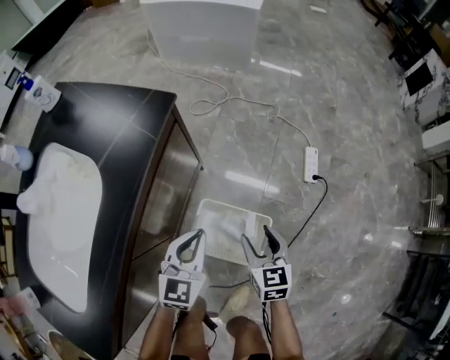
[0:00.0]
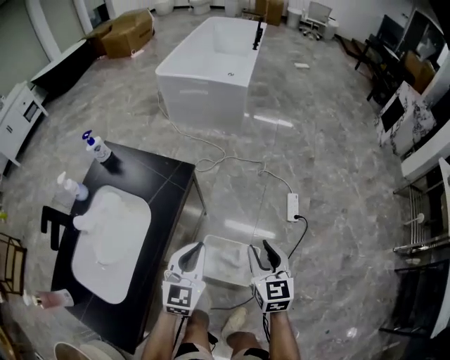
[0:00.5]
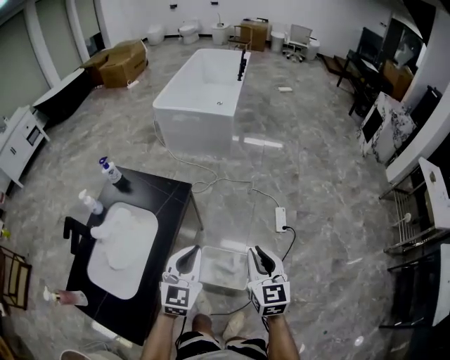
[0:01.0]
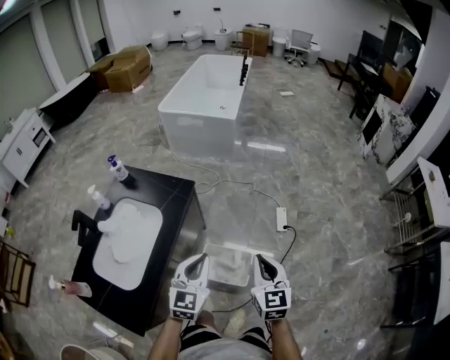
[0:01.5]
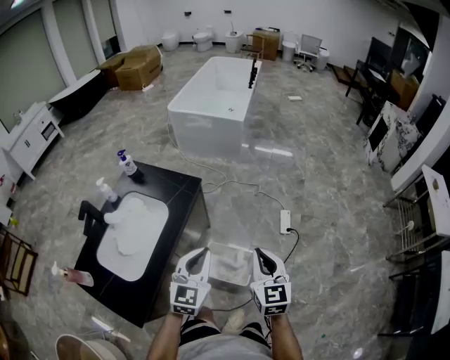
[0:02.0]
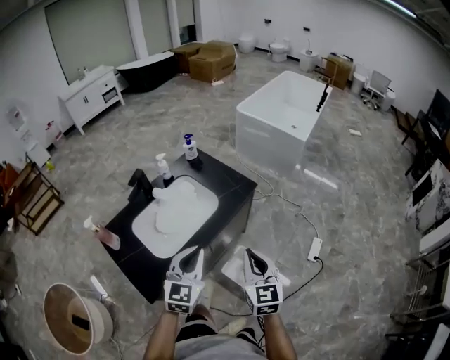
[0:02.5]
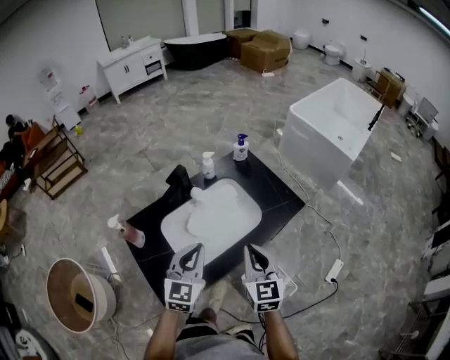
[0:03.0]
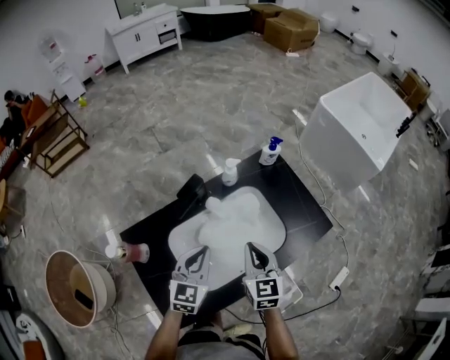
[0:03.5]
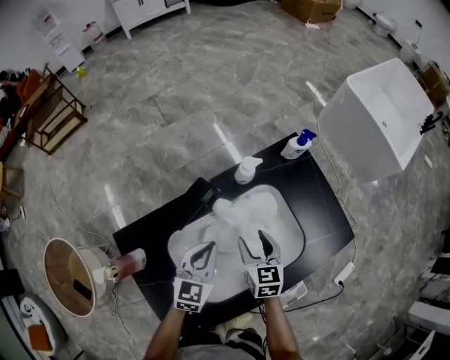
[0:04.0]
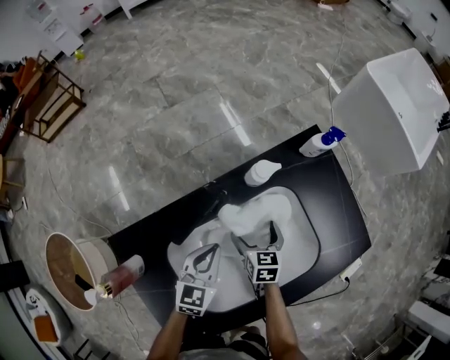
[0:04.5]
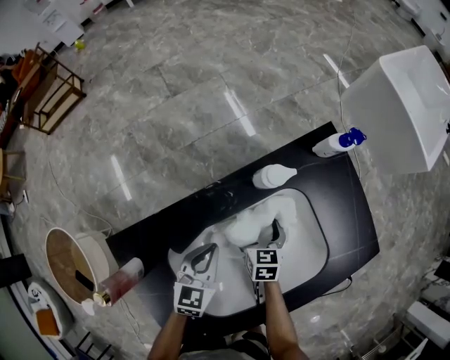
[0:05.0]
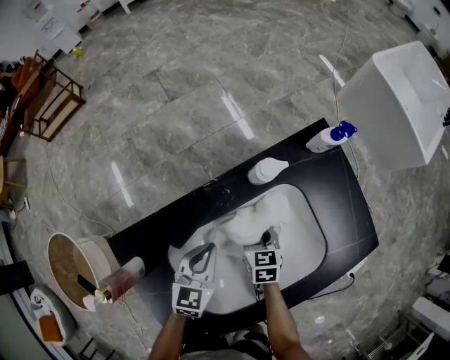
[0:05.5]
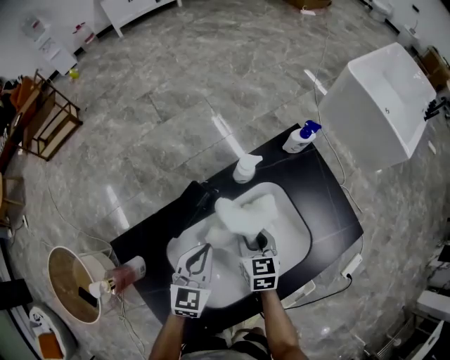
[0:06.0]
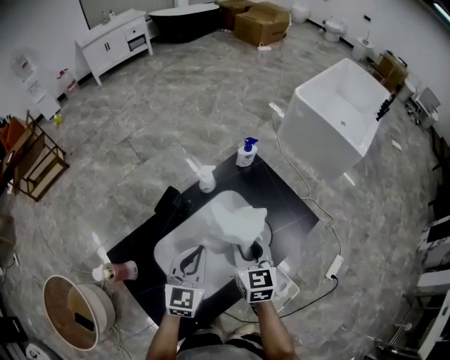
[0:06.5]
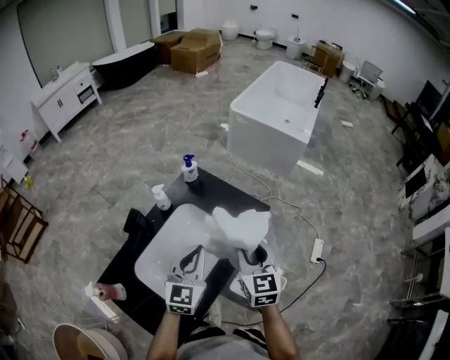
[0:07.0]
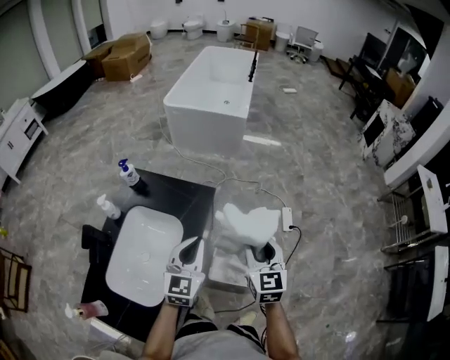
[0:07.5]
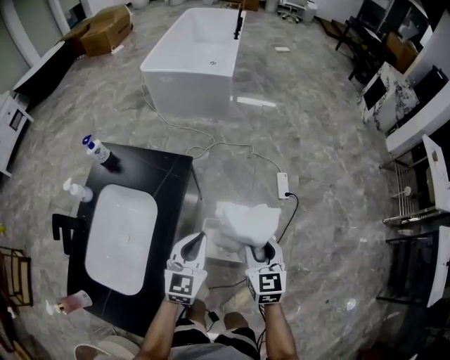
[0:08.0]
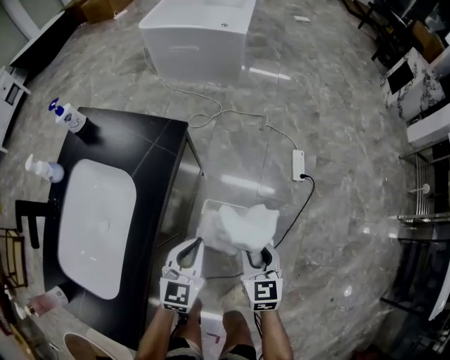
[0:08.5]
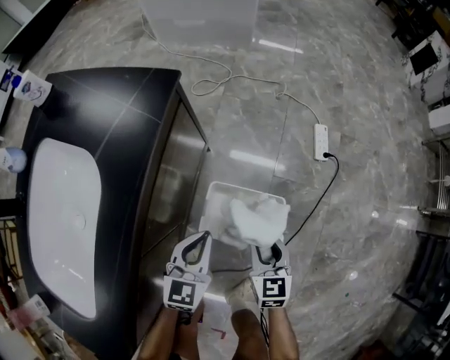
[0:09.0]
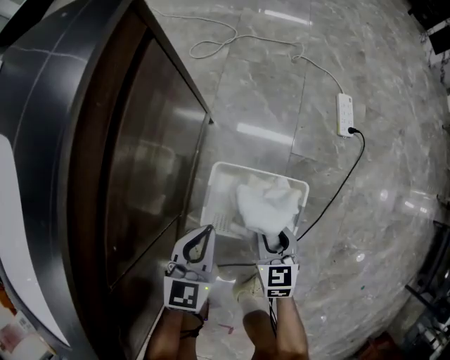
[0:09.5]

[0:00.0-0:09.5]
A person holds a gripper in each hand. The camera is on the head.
0.0 to 2.0 s: Both grippers move upward, some 50 cm. The right gripper changes its angle by some 20 degrees, and closes up.
2.0 to 4.0 s: Both grippers are carried approximately 60 cm. The left gripper rotates some 40 degrees, while the right gripper changes its angle by roughly 50 degrees, and opens up.
4.0 to 5.5 s: The right gripper shifts roughly 15 cm downward, and opens, then closes once more, while the left gripper moves downward, some 10 cm.
5.5 to 7.5 s: The left gripper moves roughly 50 cm, and changes its angle by some 50 degrees; the right gripper moves approximately 60 cm, and changes its angle by roughly 60 degrees.
7.5 to 9.5 s: The grippers both shift downward by roughly 70 cm. The right gripper rotates roughly 30 degrees. The left gripper changes its angle by some 30 degrees.

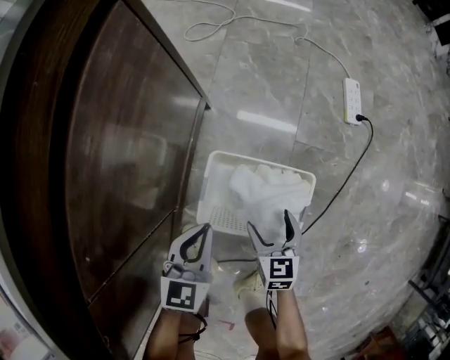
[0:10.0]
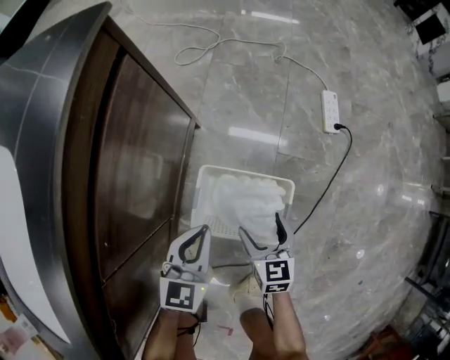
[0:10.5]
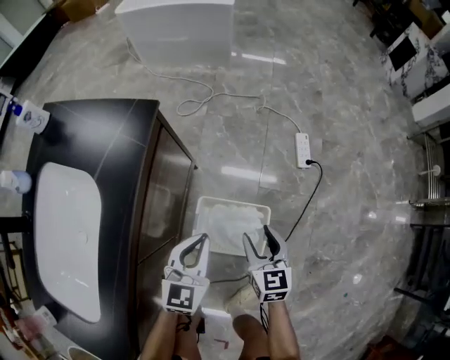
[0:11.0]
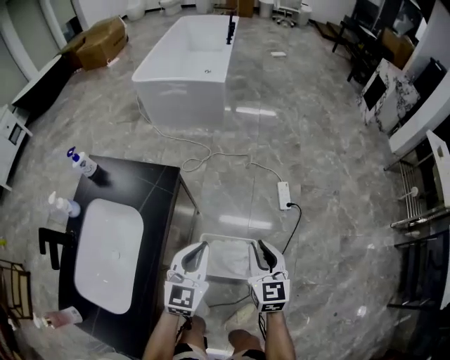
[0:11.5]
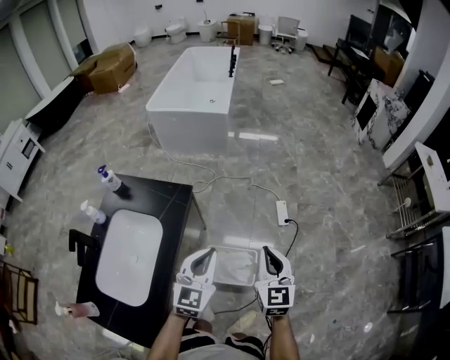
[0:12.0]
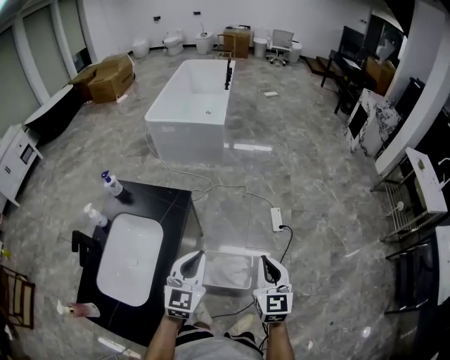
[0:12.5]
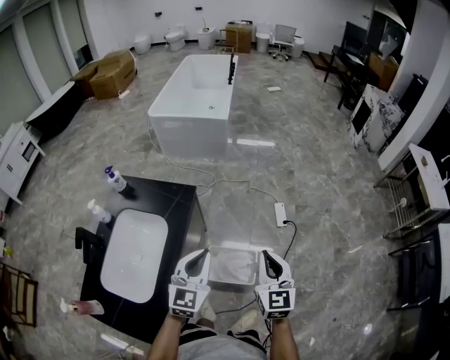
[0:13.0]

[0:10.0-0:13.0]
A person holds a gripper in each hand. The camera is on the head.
10.0 to 11.5 s: Both grippers travel together upward, some 50 cm. The right gripper turns by approximately 20 degrees, and closes up. The left gripper turns by roughly 30 degrees.
11.5 to 13.0 s: The two grippers go approximately 20 cm upward and backward.

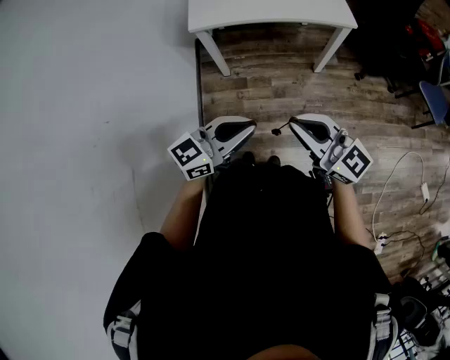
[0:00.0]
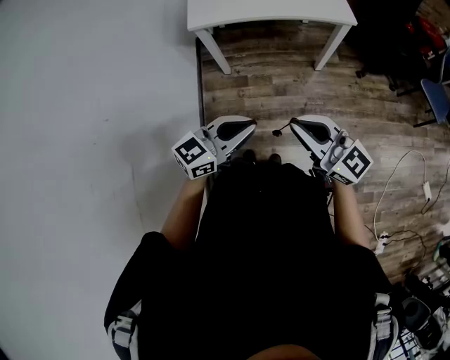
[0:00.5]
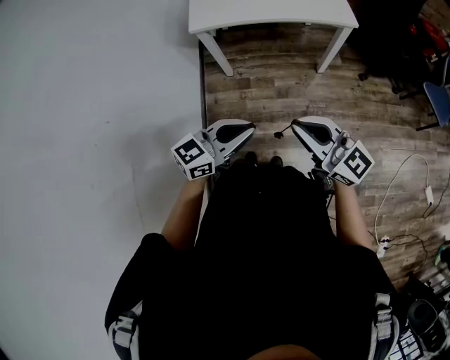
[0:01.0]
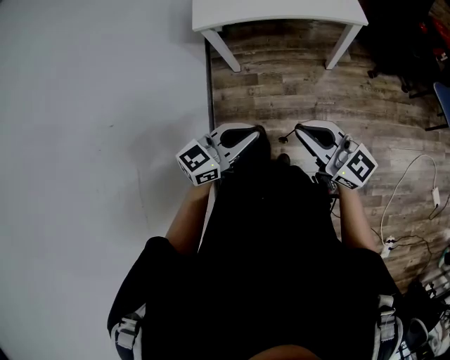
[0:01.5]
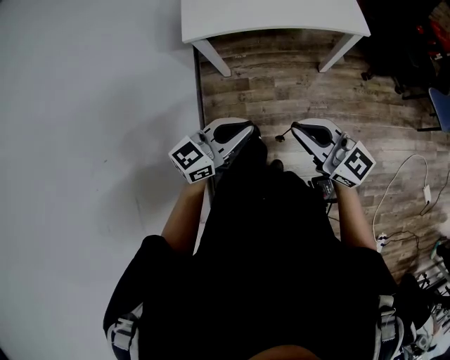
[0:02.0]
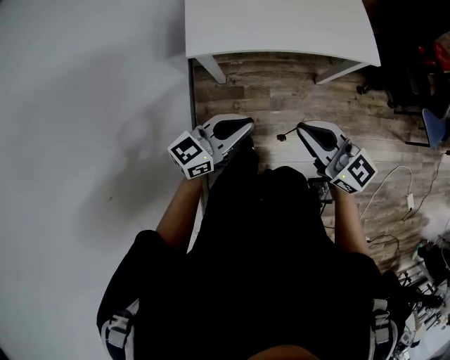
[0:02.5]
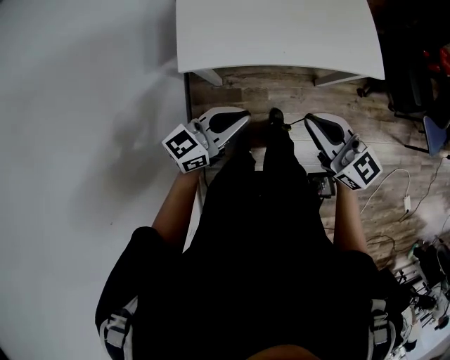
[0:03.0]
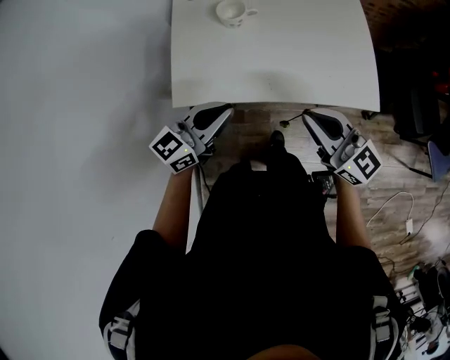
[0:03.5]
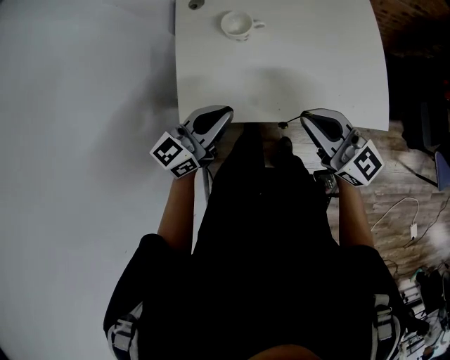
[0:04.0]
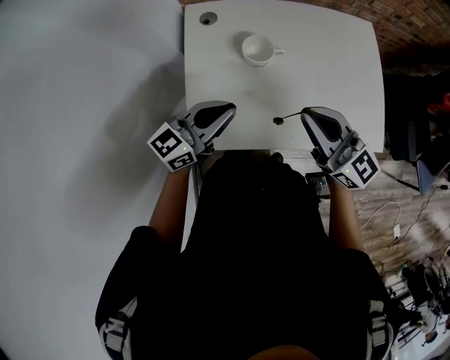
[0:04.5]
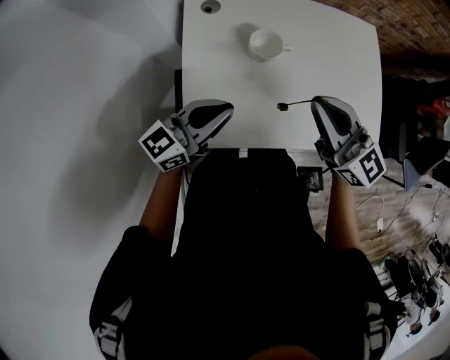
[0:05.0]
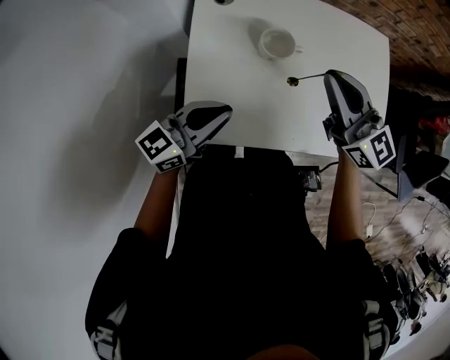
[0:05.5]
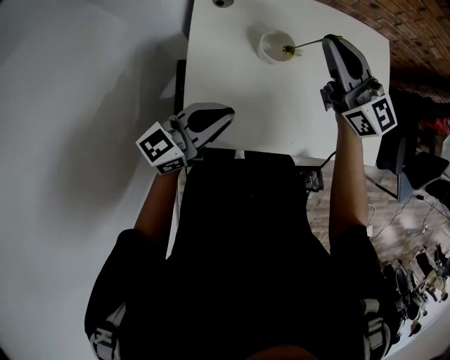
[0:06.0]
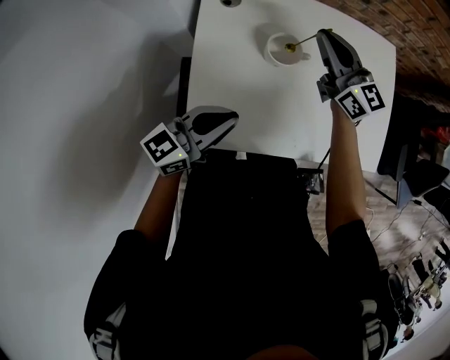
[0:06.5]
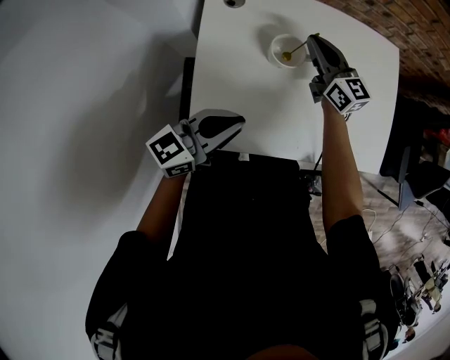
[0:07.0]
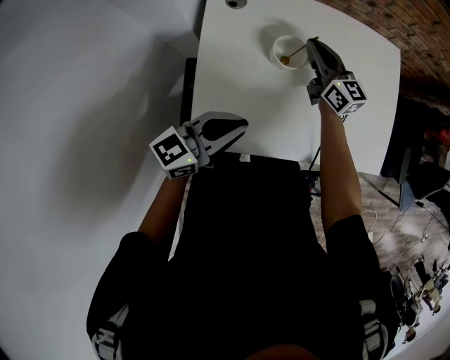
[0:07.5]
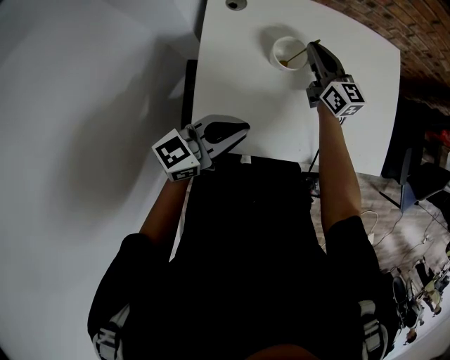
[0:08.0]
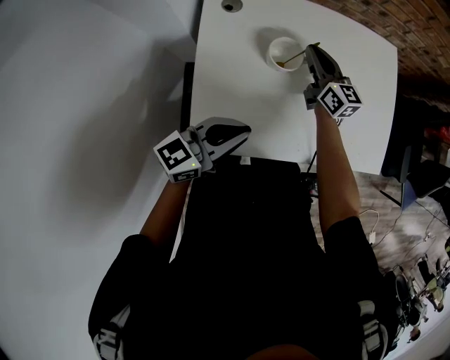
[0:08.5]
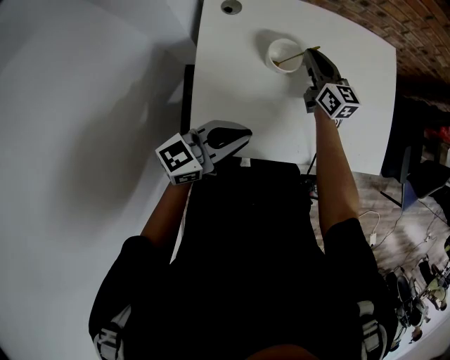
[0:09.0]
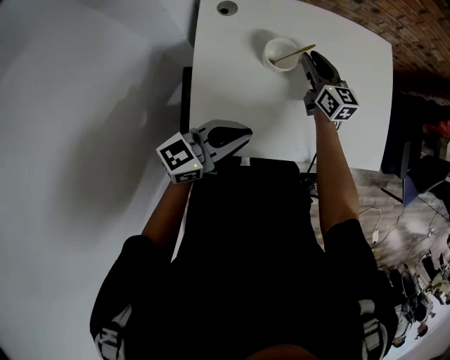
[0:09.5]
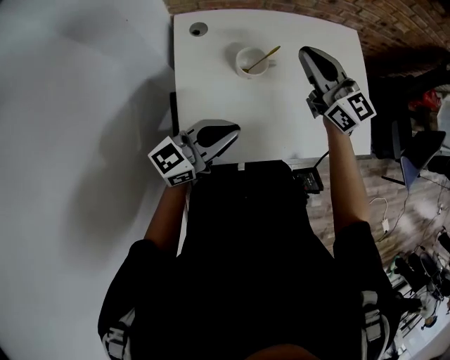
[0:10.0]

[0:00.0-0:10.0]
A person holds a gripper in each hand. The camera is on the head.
0.0 to 2.0 s: The two grippers go some 10 cm forward.
2.0 to 4.0 s: The two grippers travel together, forward, about 40 cm.
4.0 to 6.0 s: The left gripper goes approximately 15 cm to the left and forward, while the right gripper heads forward and to the left, covering about 30 cm.
6.0 to 8.0 s: The right gripper shifts some 20 cm downward, and swivels roughly 20 degrees.
8.0 to 10.0 s: The right gripper goes roughly 15 cm upward, and opens and closes again.

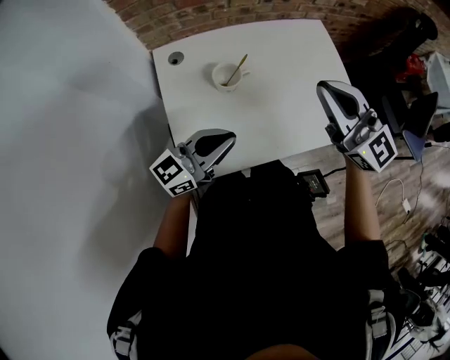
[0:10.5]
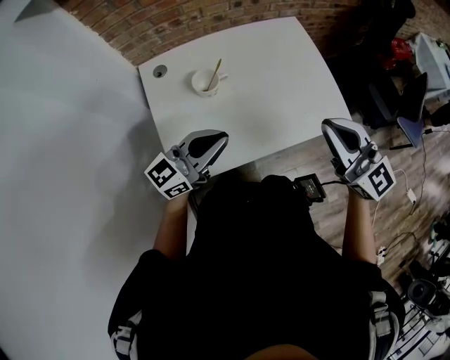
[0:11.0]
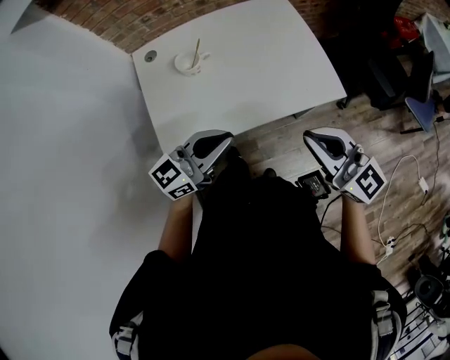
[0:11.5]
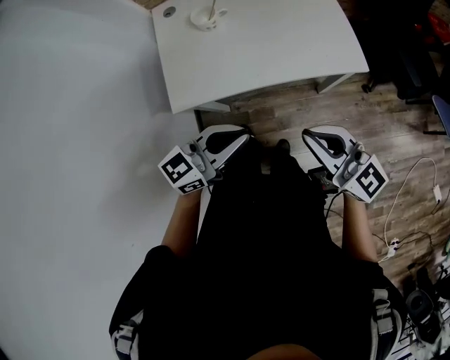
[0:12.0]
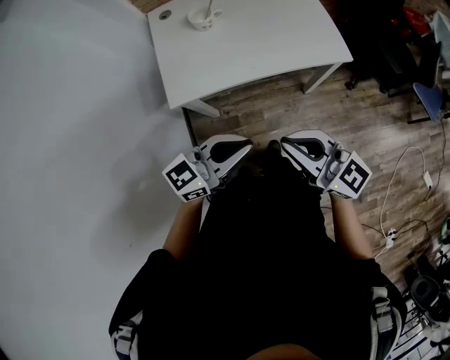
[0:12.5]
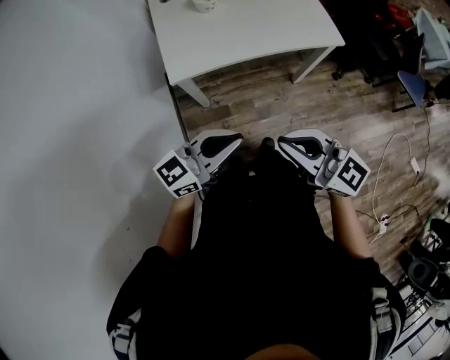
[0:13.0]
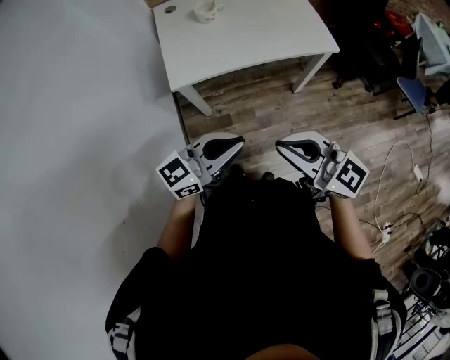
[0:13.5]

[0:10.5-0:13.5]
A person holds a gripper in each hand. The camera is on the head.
10.5 to 12.0 s: The grippers both shift backward and to the right by approximately 30 cm.
12.0 to 13.5 s: The right gripper ends up approximately 25 cm from where it was, while the left gripper moves some 20 cm.

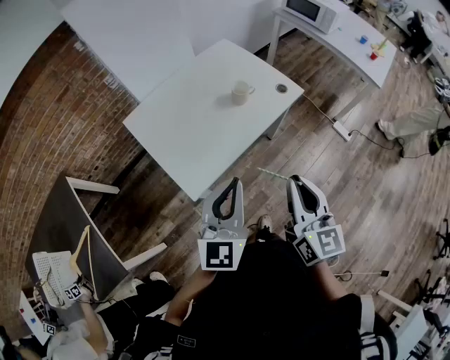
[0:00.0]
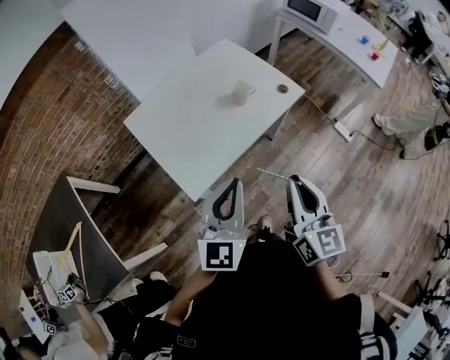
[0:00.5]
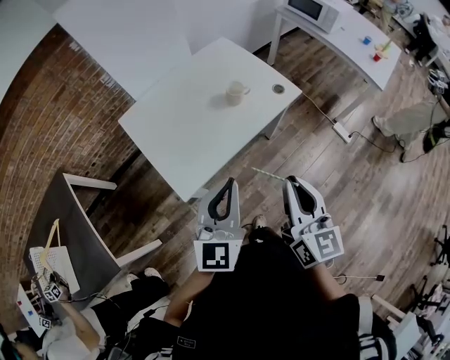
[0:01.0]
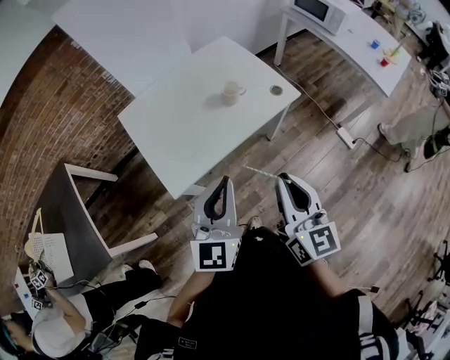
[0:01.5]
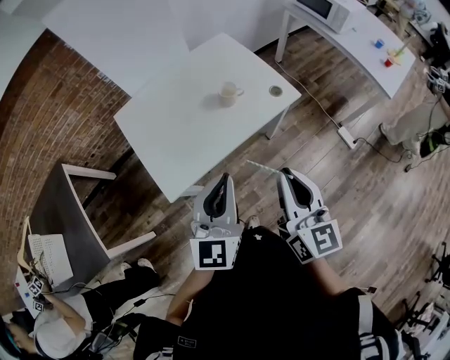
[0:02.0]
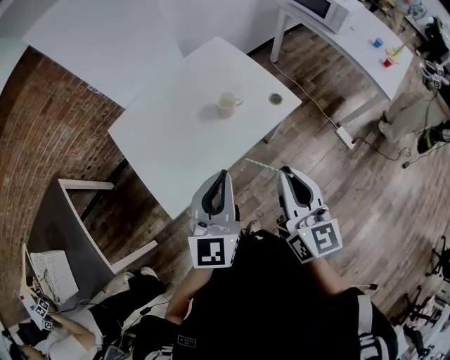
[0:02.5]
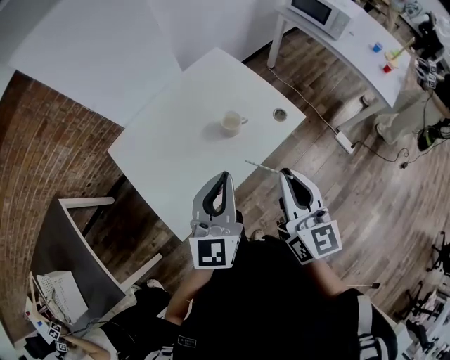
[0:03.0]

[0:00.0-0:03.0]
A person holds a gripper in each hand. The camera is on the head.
0.0 to 1.5 s: Both grippers travel together to the right, approximately 5 cm.
1.5 to 3.0 s: The grippers both shift forward by roughly 20 cm.
